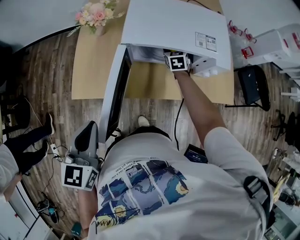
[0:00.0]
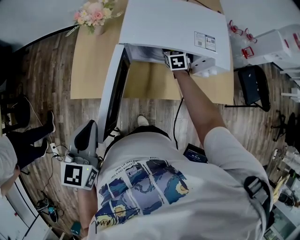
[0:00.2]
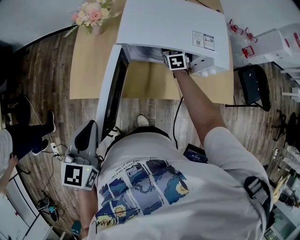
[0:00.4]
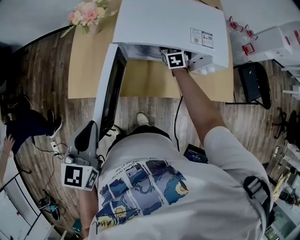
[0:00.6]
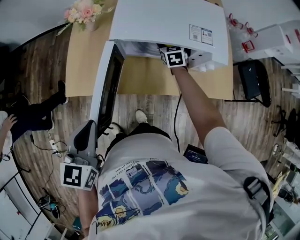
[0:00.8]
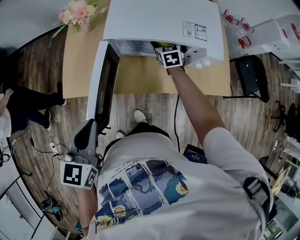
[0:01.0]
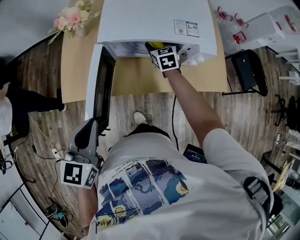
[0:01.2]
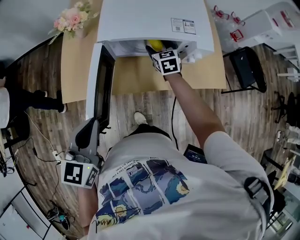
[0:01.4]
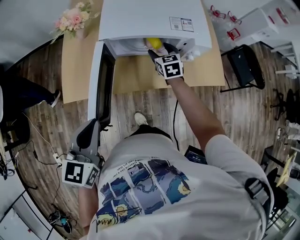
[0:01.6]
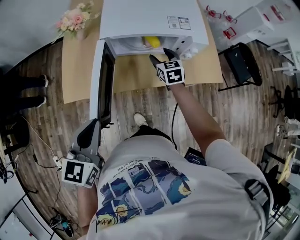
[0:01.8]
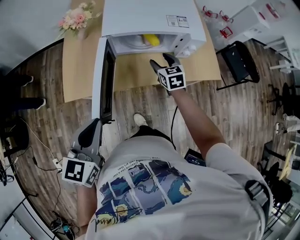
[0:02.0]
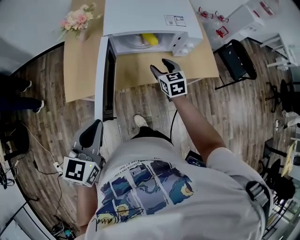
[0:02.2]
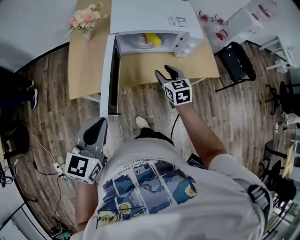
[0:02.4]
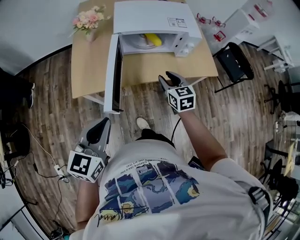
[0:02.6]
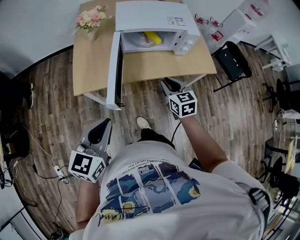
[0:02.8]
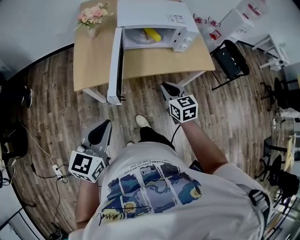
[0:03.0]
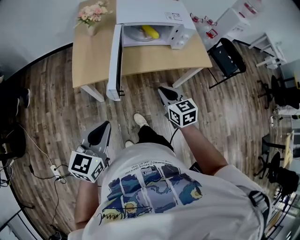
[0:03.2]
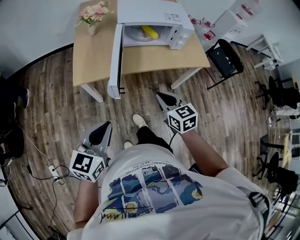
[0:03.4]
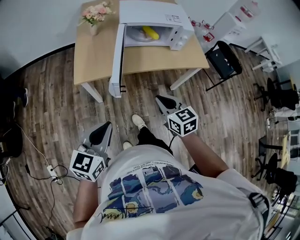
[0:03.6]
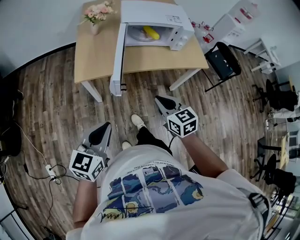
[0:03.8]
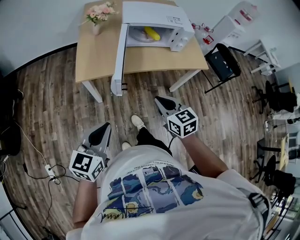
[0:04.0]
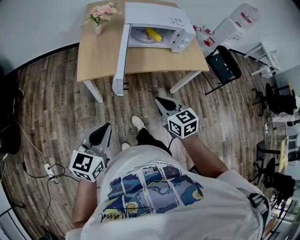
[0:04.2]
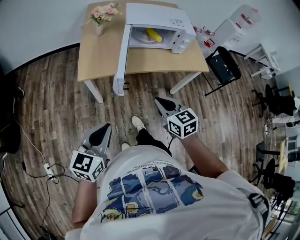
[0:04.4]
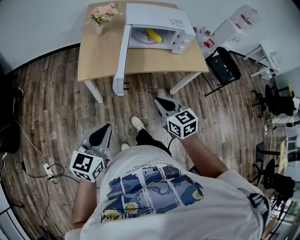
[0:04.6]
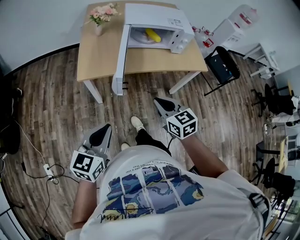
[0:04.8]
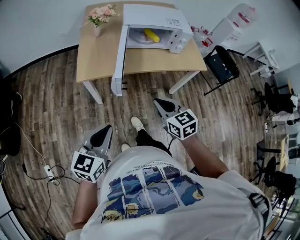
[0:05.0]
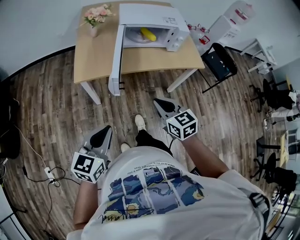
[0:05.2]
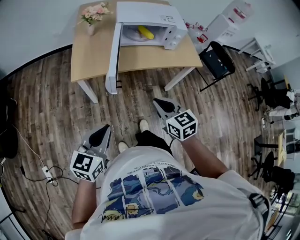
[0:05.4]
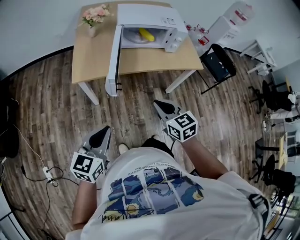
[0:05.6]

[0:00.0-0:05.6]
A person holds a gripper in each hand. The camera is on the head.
0:00.0 to 0:01.4: The right gripper moves backward, about 5 cm, while the left gripper shifts approximately 5 cm to the right.
0:01.4 to 0:02.8: The left gripper travels backward by roughly 15 cm, while the right gripper goes some 30 cm backward, and closes up.
0:02.8 to 0:04.2: The left gripper goes approximately 10 cm backward; the right gripper travels backward by approximately 20 cm.
0:04.2 to 0:05.6: The grippers move only a little.

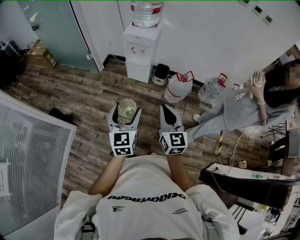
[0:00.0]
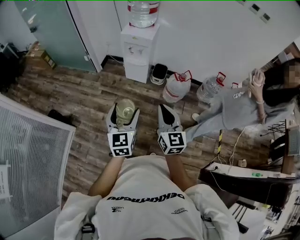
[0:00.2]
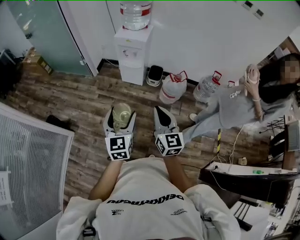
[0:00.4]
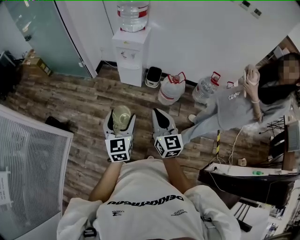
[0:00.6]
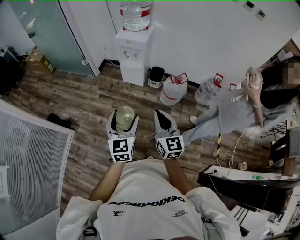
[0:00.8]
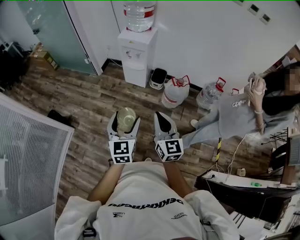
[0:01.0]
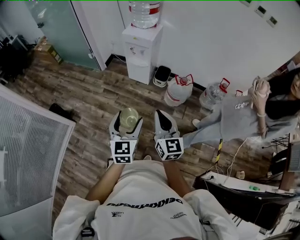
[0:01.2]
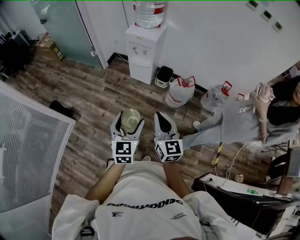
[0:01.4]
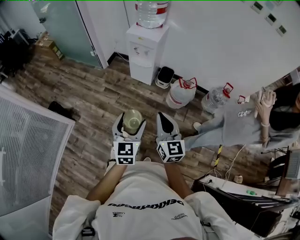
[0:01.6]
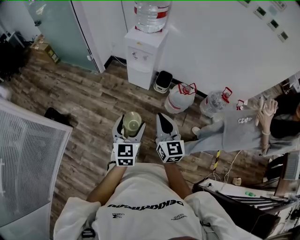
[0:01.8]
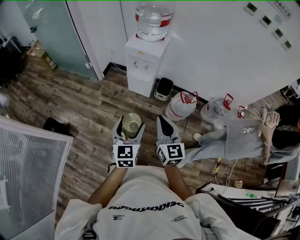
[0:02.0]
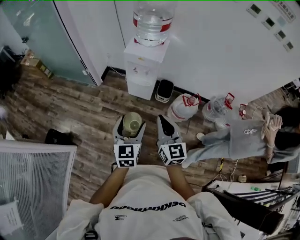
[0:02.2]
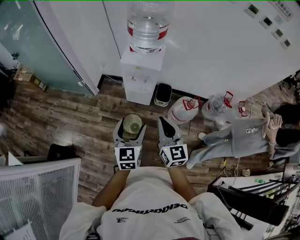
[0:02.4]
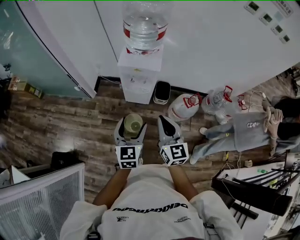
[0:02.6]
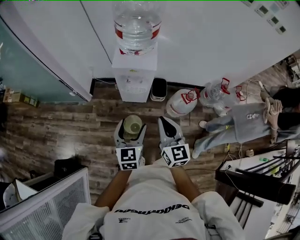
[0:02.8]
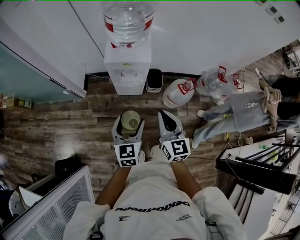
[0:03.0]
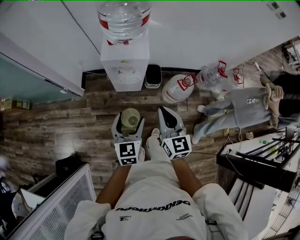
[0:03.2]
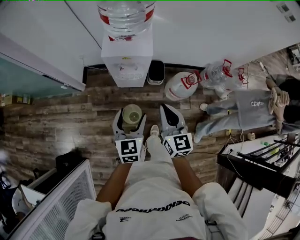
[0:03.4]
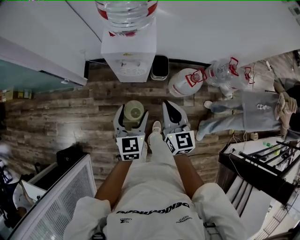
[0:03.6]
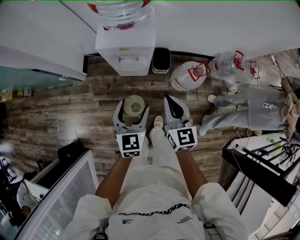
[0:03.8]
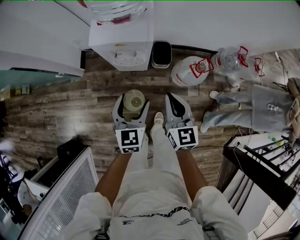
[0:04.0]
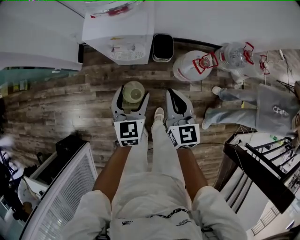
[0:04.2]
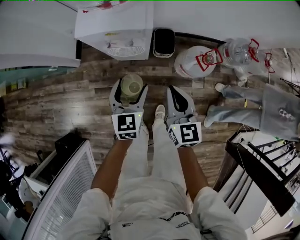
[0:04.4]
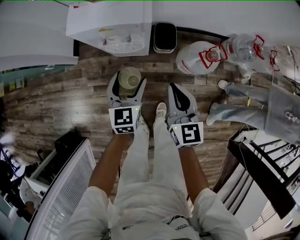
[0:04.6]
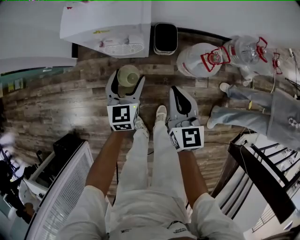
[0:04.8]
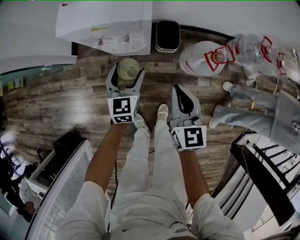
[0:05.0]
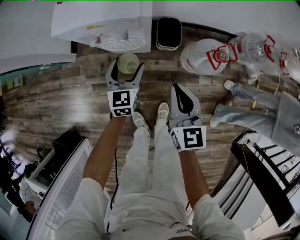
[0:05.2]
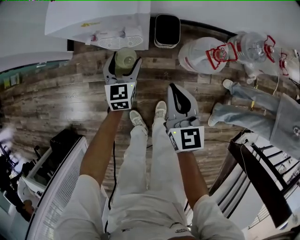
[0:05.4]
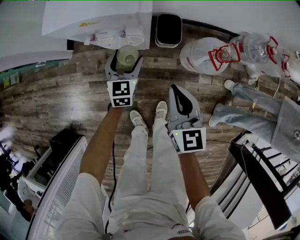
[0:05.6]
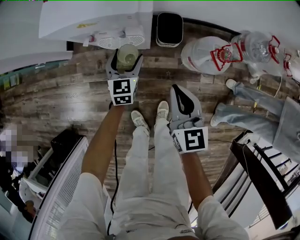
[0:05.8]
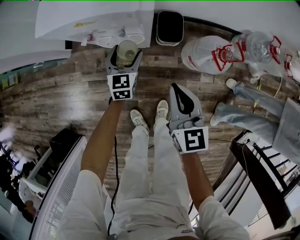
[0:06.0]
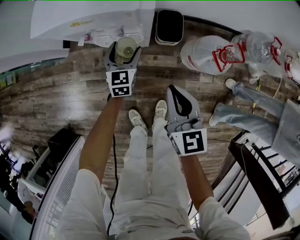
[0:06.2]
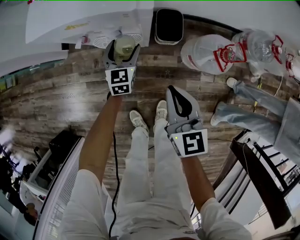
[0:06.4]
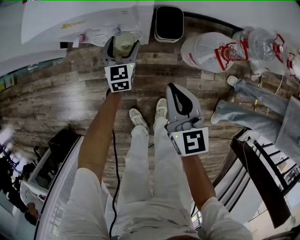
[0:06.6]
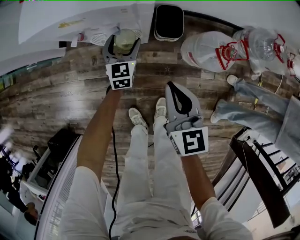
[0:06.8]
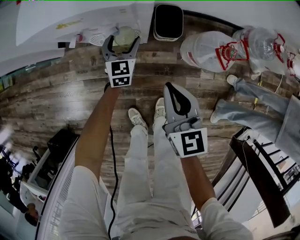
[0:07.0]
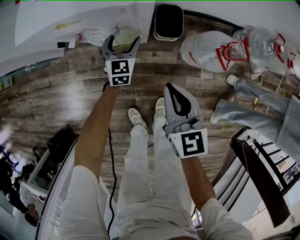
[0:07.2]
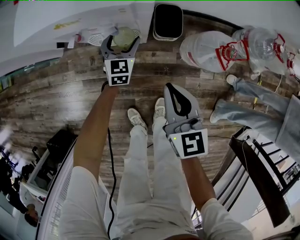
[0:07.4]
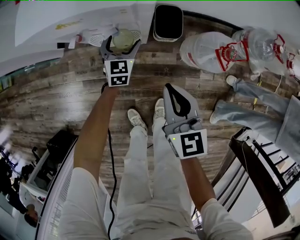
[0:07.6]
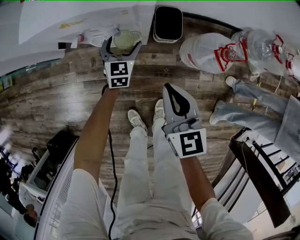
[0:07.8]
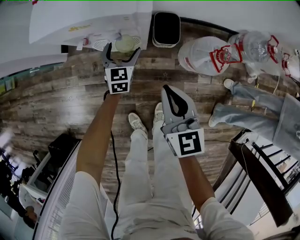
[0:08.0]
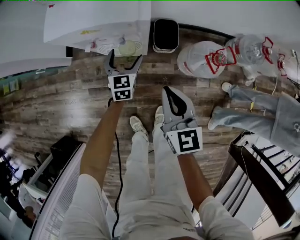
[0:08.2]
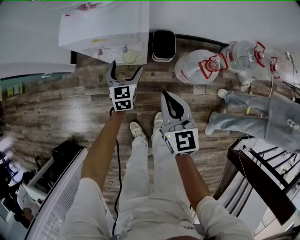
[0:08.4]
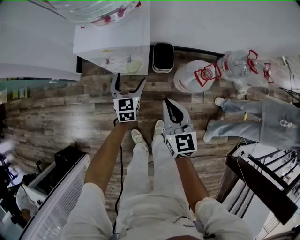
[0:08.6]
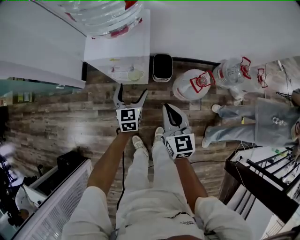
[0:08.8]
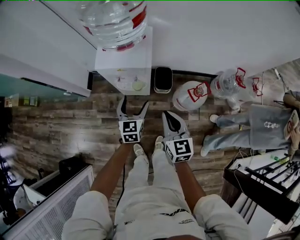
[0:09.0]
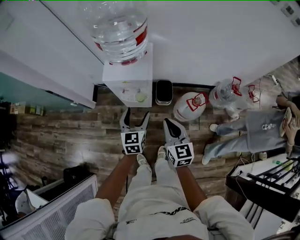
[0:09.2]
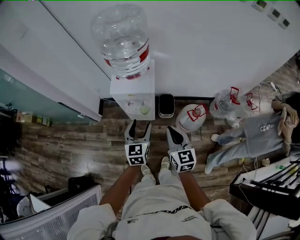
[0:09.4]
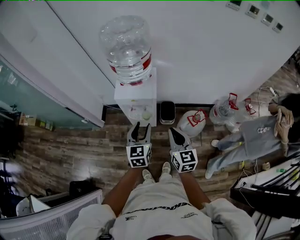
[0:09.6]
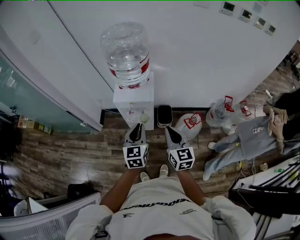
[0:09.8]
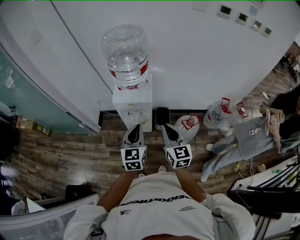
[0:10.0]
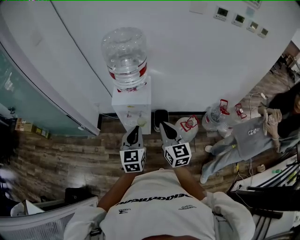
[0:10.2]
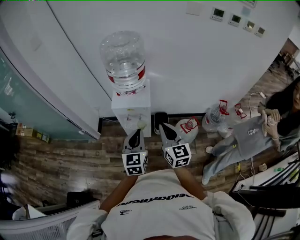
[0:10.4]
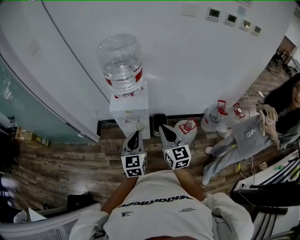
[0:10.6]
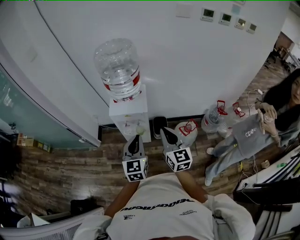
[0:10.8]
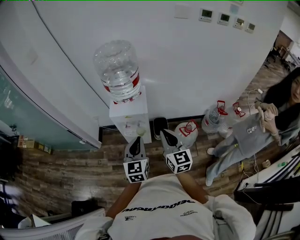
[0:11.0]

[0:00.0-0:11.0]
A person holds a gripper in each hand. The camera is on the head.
0:00.0 to 0:01.6: The right gripper is displaced to the right by approximately 5 cm. Meanwhile the left gripper shifts some 10 cm to the right and downward.
0:01.6 to 0:03.2: The two grippers travel together, forward and to the left, about 40 cm. The right gripper changes its angle by approximately 20 degrees. The left gripper swivels about 20 degrees.
0:03.2 to 0:04.8: Both grippers travel together downward and forward, about 35 cm.
0:04.8 to 0:06.2: The right gripper heads downward, covering about 10 cm, while the left gripper moves downward and forward, approximately 20 cm.
0:06.2 to 0:07.8: The left gripper shifts by about 5 cm.
0:07.8 to 0:09.4: The right gripper shifts roughly 35 cm upward; the left gripper shifts about 60 cm upward and backward, and closes.
0:09.4 to 0:11.0: The right gripper moves upward, approximately 10 cm. Meanwhile the left gripper moves upward and backward, approximately 15 cm, and closes.

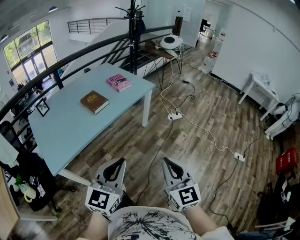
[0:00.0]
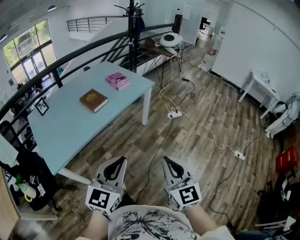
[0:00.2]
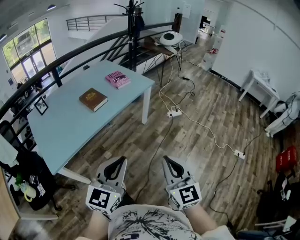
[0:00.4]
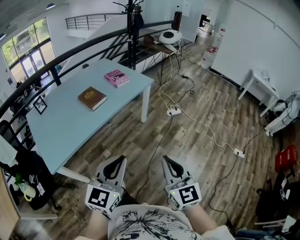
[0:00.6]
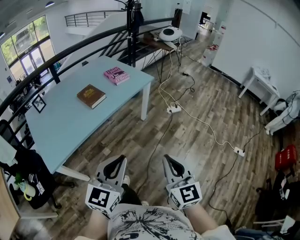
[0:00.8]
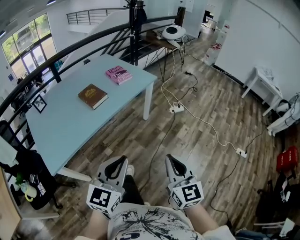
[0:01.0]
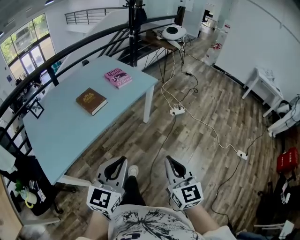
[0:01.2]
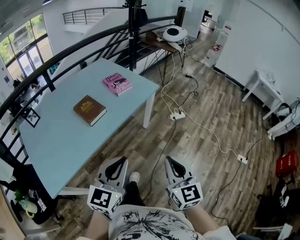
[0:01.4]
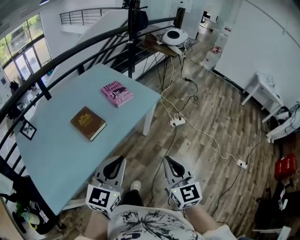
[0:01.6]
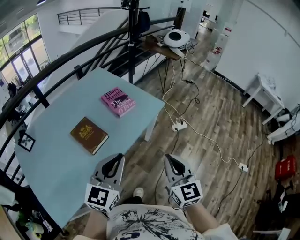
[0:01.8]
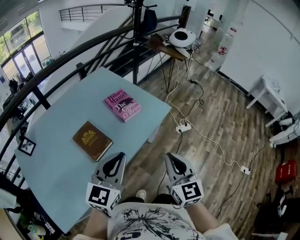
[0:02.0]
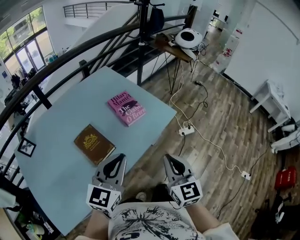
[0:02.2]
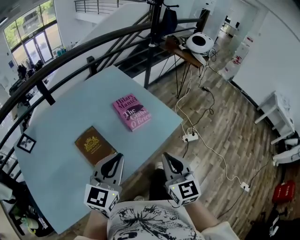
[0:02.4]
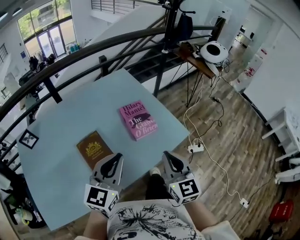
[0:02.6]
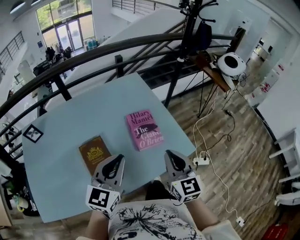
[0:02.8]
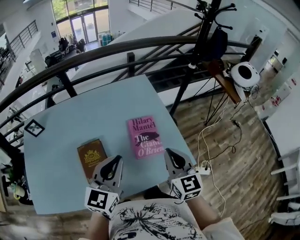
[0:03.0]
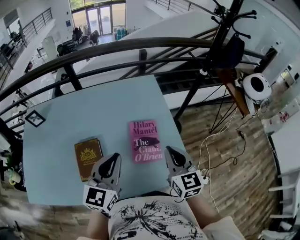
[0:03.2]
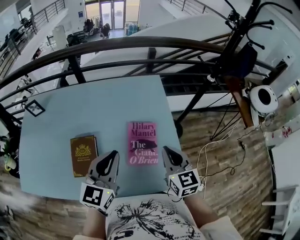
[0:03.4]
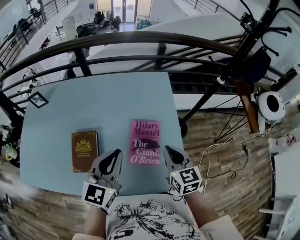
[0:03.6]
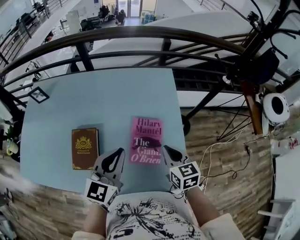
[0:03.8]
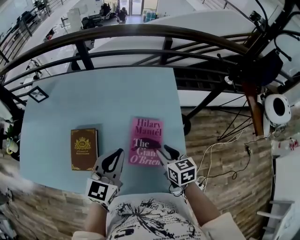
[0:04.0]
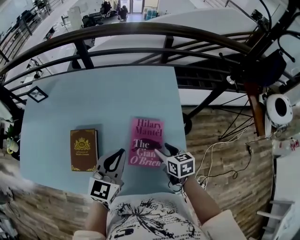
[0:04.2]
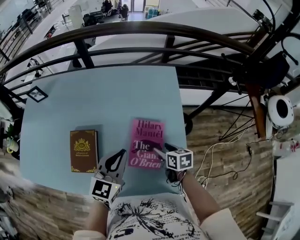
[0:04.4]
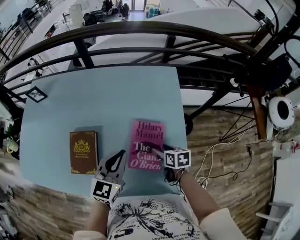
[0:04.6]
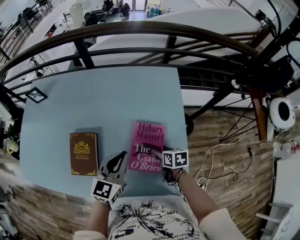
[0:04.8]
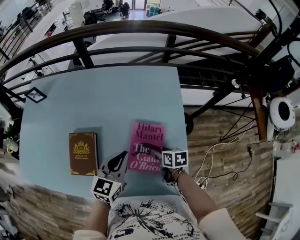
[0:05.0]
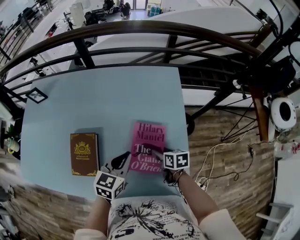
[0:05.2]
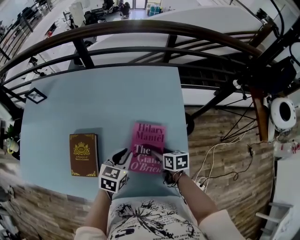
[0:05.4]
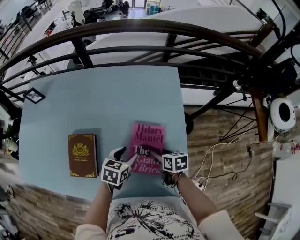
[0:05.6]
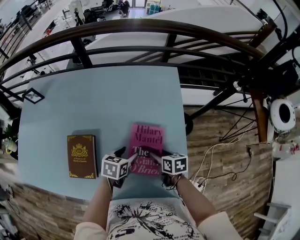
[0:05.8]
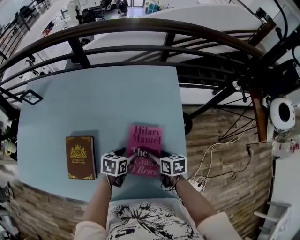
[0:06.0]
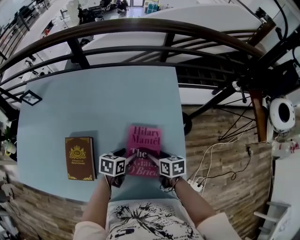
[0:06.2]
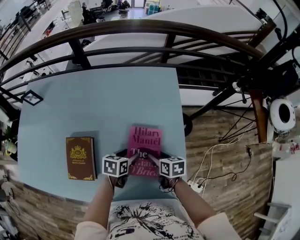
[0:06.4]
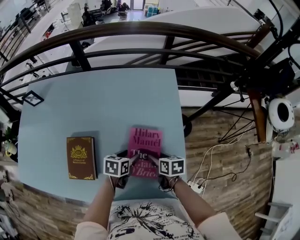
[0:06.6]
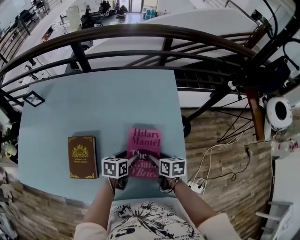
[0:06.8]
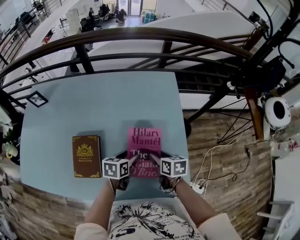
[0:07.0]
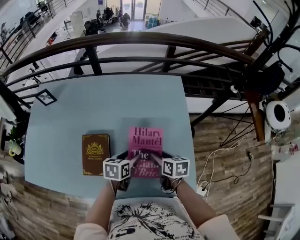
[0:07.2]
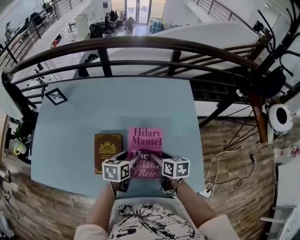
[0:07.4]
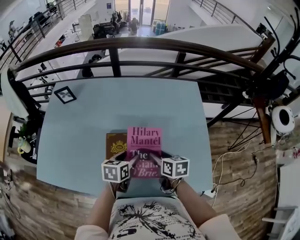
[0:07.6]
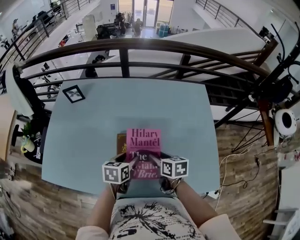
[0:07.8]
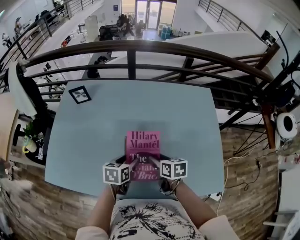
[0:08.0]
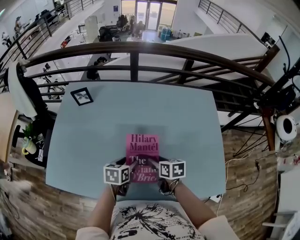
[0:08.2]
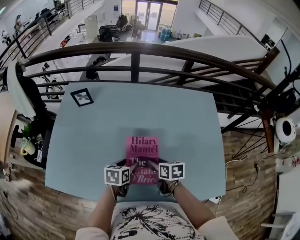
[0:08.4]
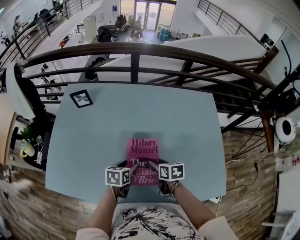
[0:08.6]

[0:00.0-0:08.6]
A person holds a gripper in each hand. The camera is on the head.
0:00.0 to 0:01.4: The two grippers go roughly 20 cm forward.
0:01.4 to 0:02.8: The pair of grippers is taken forward, approximately 50 cm. The left gripper rotates approximately 20 degrees. The right gripper turns by approximately 20 degrees.
0:02.8 to 0:04.4: The right gripper is displaced downward by some 25 cm, angles its fingers downward, by about 40 degrees, and opens up, while the left gripper shifts by approximately 20 cm, and changes its angle by roughly 30 degrees.
0:04.4 to 0:05.8: The left gripper heads downward, covering approximately 20 cm, points its fingers roughly 30 degrees further downward, and opens its fingers.
0:05.8 to 0:07.2: The left gripper moves to the left, roughly 5 cm. The right gripper is displaced upward and to the left by roughly 10 cm.
0:07.2 to 0:08.6: The grippers both shift to the left by roughly 30 cm.
